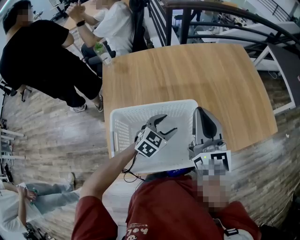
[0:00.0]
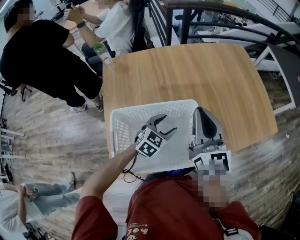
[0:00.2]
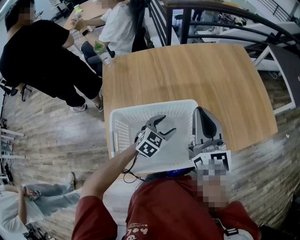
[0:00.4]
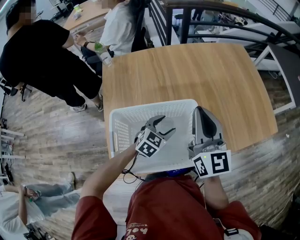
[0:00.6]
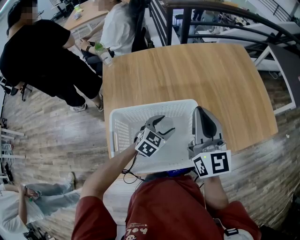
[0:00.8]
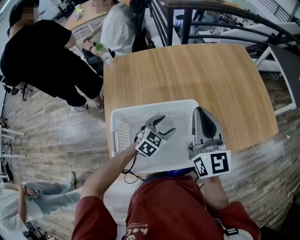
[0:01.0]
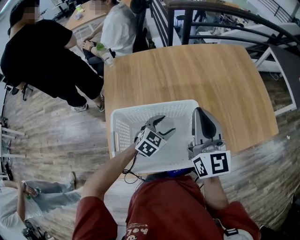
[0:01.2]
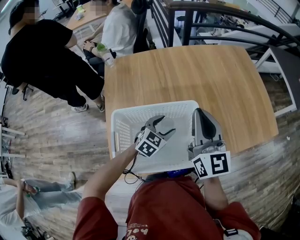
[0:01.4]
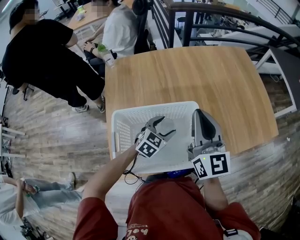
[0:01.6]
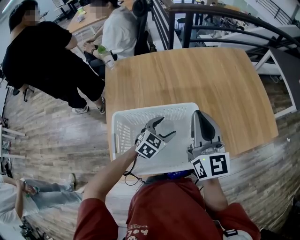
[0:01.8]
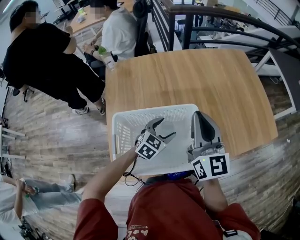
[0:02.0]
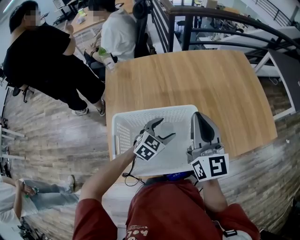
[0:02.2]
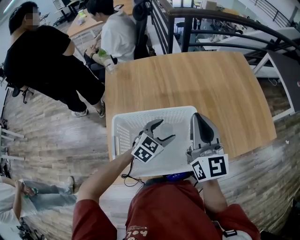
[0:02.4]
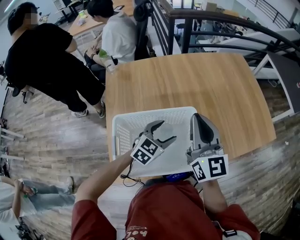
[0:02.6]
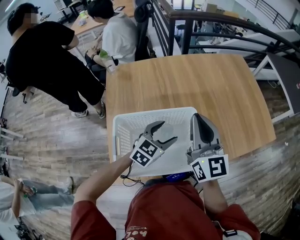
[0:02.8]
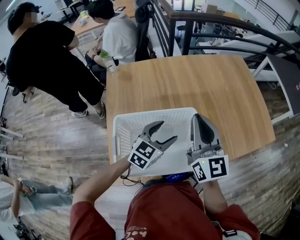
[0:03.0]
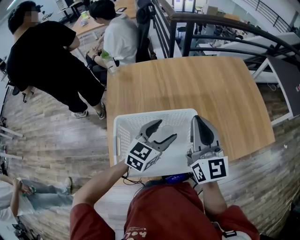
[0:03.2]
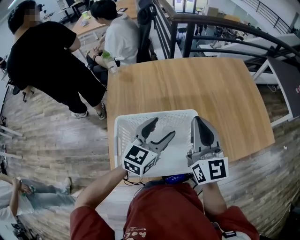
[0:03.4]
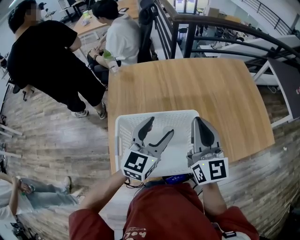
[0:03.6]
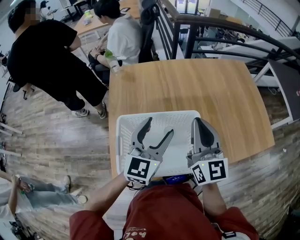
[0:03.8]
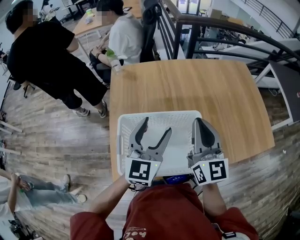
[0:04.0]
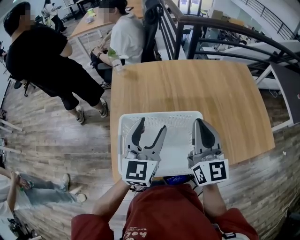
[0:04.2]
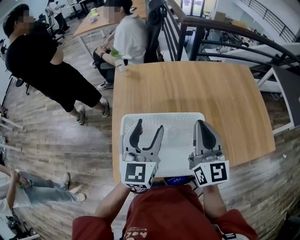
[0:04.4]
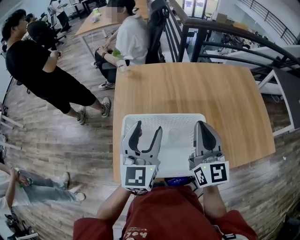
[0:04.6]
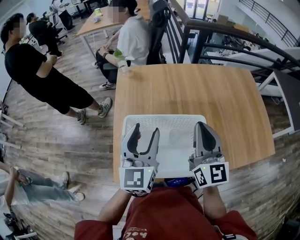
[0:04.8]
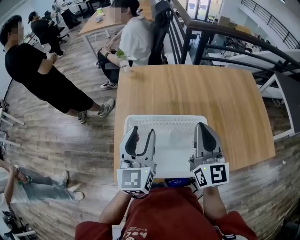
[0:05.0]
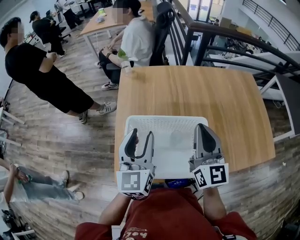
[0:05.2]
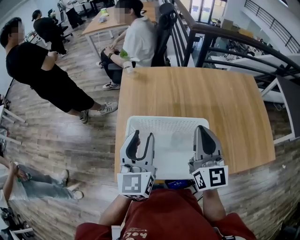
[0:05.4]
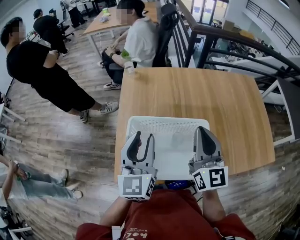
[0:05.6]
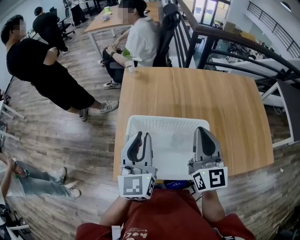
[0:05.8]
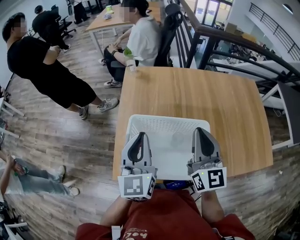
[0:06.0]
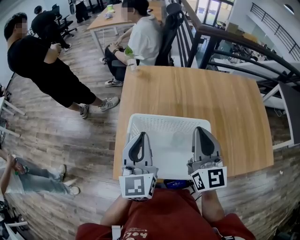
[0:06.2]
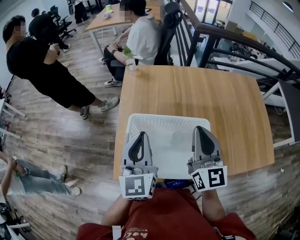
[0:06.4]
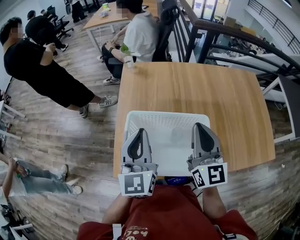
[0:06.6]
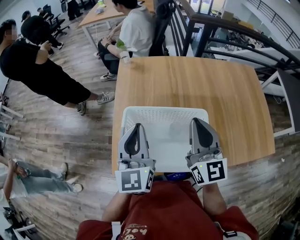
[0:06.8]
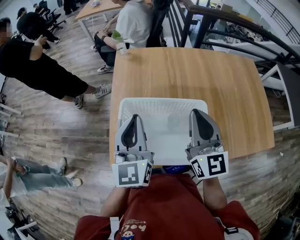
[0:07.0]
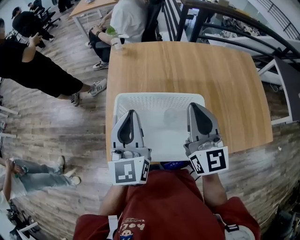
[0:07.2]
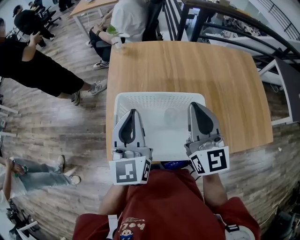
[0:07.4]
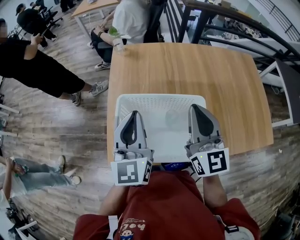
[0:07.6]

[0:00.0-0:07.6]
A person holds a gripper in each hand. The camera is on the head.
0:00.0 to 0:01.6: The grippers stay close to where they were, moving slightly.
0:01.6 to 0:03.0: The left gripper shifts roughly 10 cm upward.
0:03.0 to 0:04.6: The left gripper moves upward and to the left, some 20 cm, and turns by approximately 40 degrees.
0:04.6 to 0:06.0: The left gripper changes place by approximately 5 cm, and closes.
0:06.0 to 0:07.6: The grippers make only small movements.

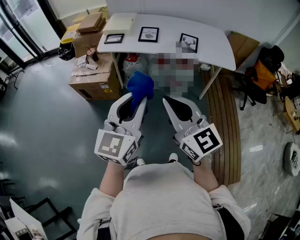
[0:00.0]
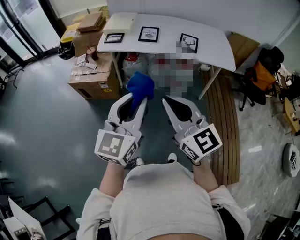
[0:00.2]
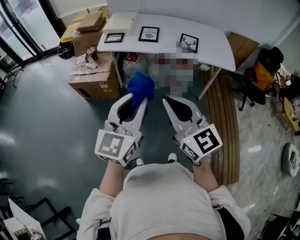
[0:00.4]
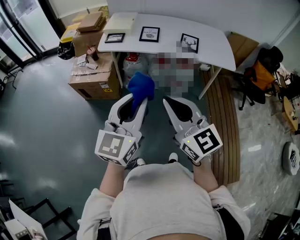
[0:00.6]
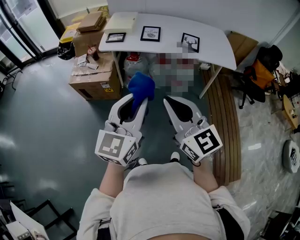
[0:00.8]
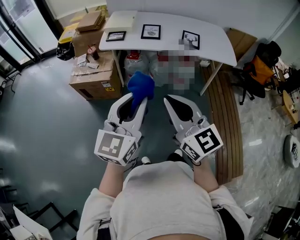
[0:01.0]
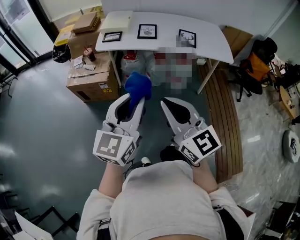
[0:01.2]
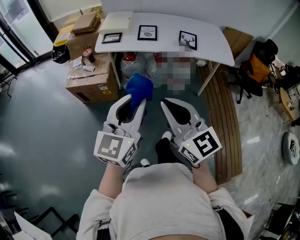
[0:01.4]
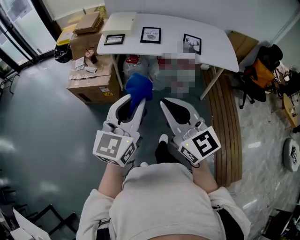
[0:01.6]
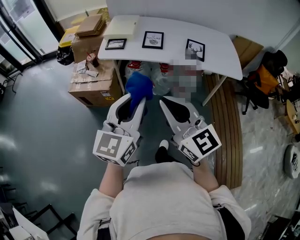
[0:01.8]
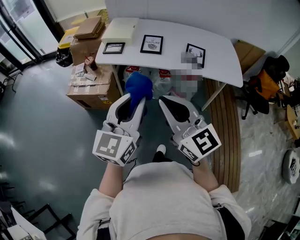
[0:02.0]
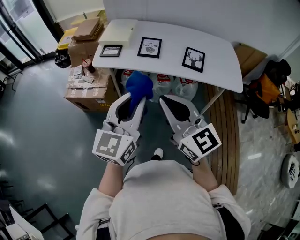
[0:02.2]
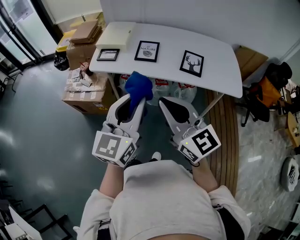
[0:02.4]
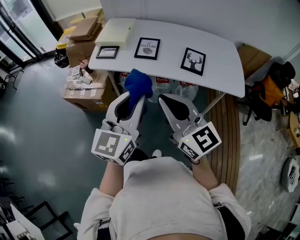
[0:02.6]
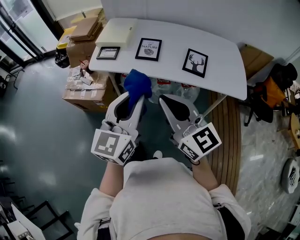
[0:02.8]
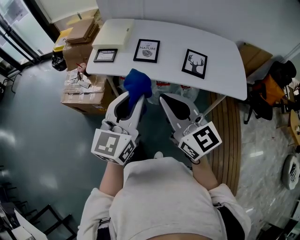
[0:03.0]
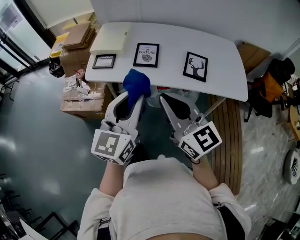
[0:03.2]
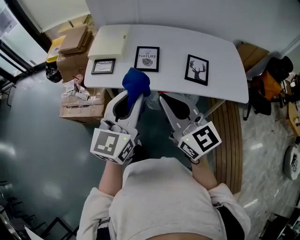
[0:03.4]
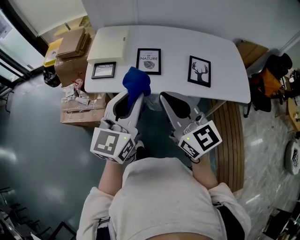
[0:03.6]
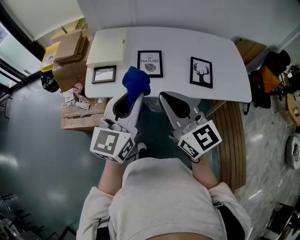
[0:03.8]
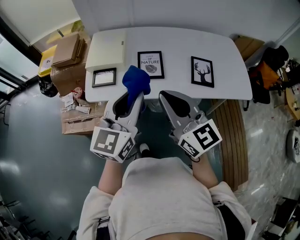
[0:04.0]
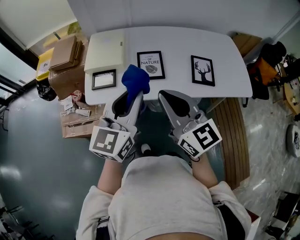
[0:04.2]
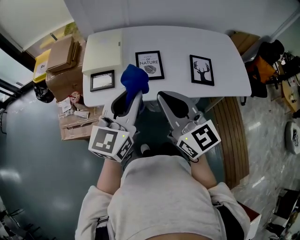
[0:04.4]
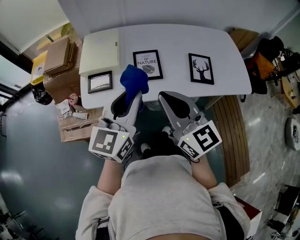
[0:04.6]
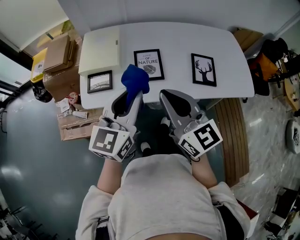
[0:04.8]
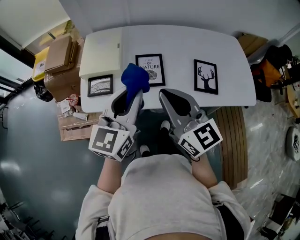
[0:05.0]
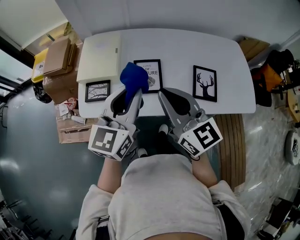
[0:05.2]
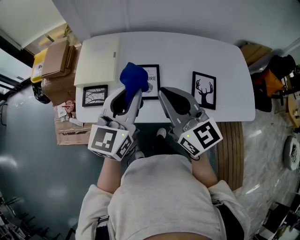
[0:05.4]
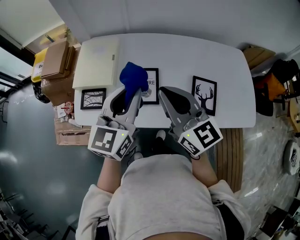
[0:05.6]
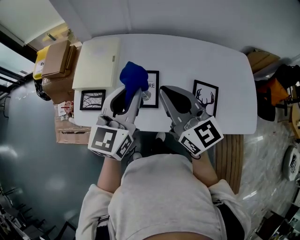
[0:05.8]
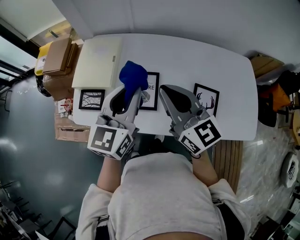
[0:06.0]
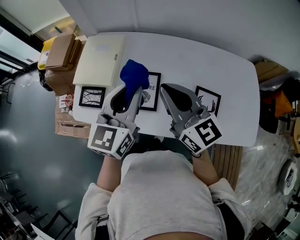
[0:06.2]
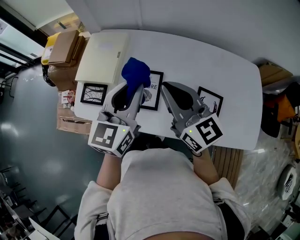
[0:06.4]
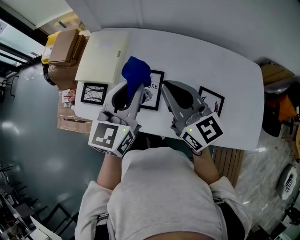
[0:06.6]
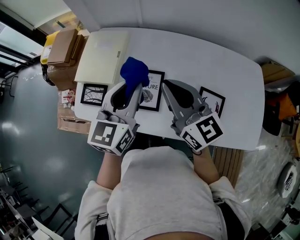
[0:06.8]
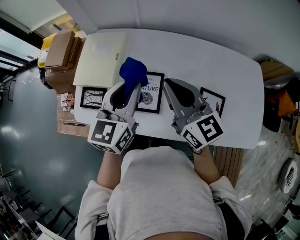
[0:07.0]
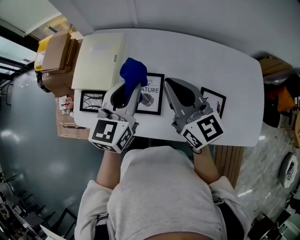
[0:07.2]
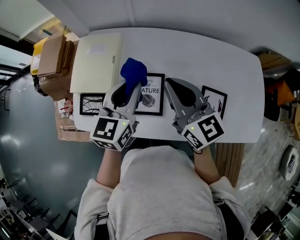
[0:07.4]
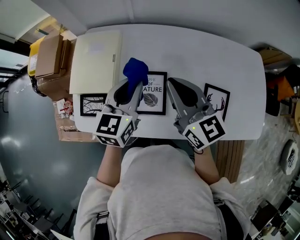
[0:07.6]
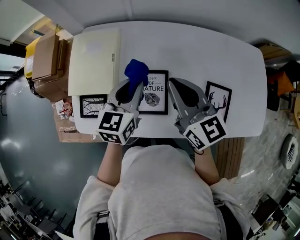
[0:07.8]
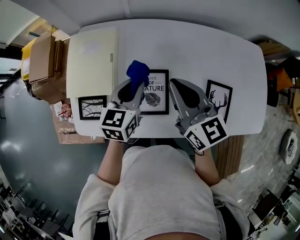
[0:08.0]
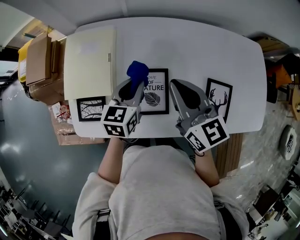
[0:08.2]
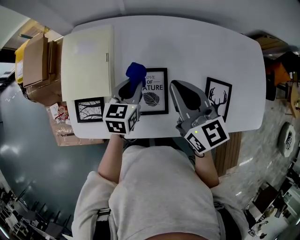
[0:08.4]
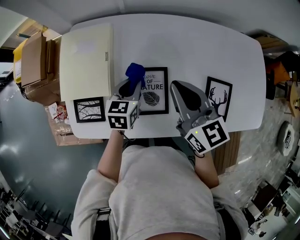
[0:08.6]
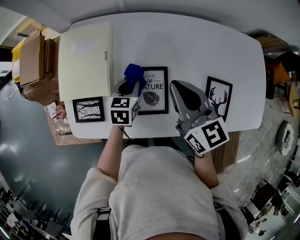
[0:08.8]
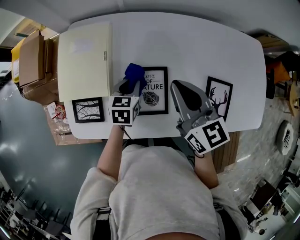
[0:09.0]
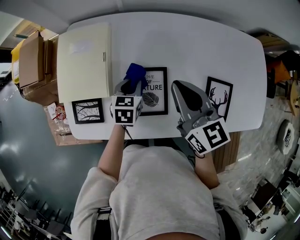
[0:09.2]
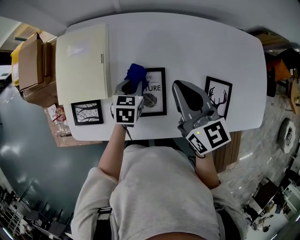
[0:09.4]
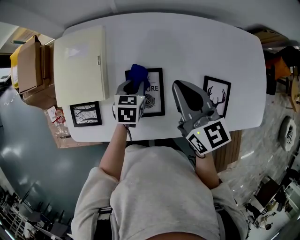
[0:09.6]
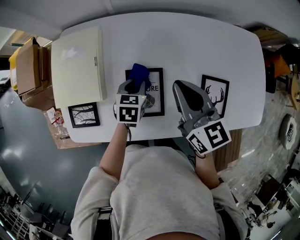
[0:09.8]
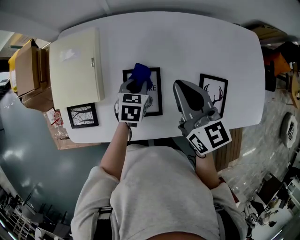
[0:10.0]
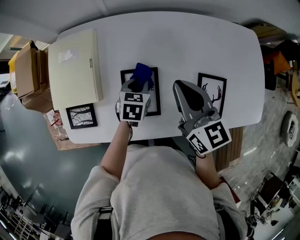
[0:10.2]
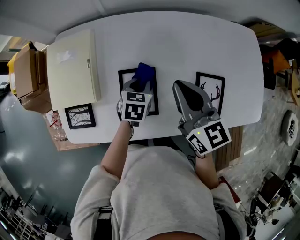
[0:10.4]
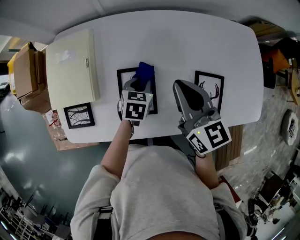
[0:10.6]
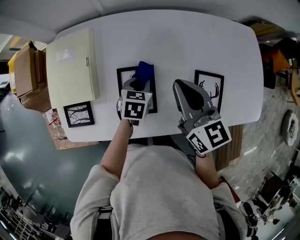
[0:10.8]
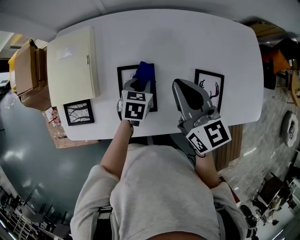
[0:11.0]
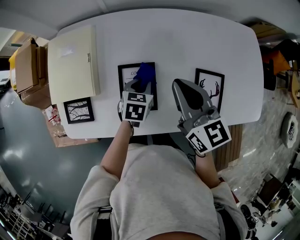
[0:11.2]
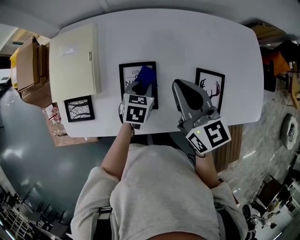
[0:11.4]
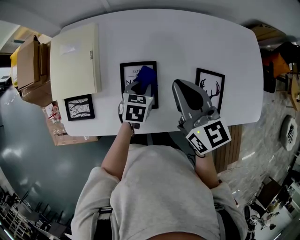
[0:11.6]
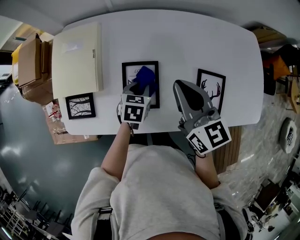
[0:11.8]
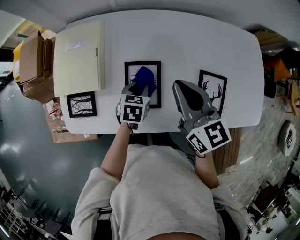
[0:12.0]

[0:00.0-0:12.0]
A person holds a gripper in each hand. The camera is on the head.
0:00.0 to 0:01.6: The right gripper heads to the left, covering roughly 5 cm. The left gripper moves to the left and forward, some 10 cm.
0:01.6 to 0:03.0: Both grippers travel together forward and to the right, about 25 cm.
0:03.0 to 0:04.4: The grippers both shift forward and to the left by roughly 20 cm.
0:04.4 to 0:06.0: The grippers both shift forward and to the right by approximately 25 cm.
0:06.0 to 0:07.6: The two grippers go some 15 cm forward and downward.
0:07.6 to 0:09.0: The right gripper goes some 5 cm downward; the left gripper moves downward, about 20 cm, and swivels about 30 degrees.
0:09.0 to 0:10.4: Both grippers travel together to the right, approximately 10 cm.
0:10.4 to 0:12.0: The left gripper ends up approximately 5 cm from where it was.

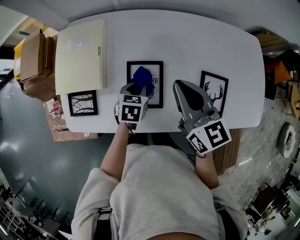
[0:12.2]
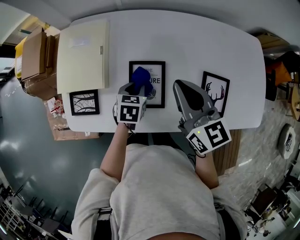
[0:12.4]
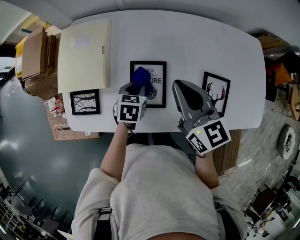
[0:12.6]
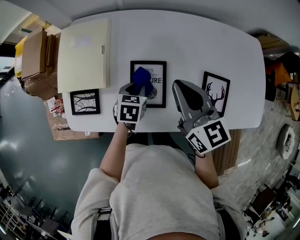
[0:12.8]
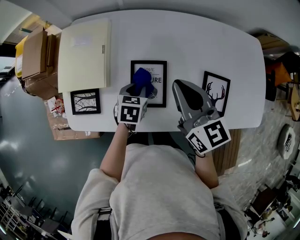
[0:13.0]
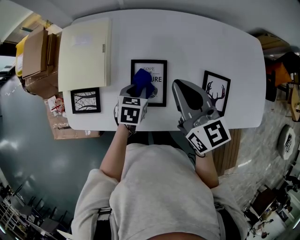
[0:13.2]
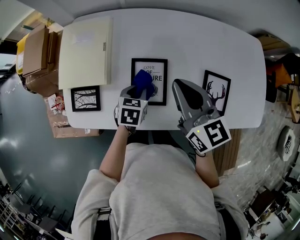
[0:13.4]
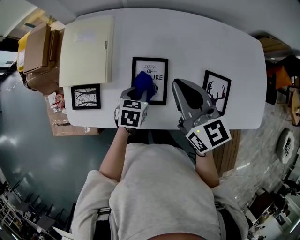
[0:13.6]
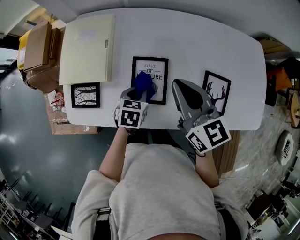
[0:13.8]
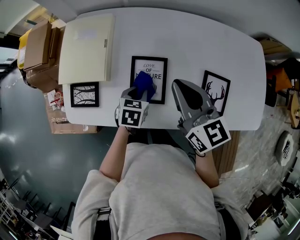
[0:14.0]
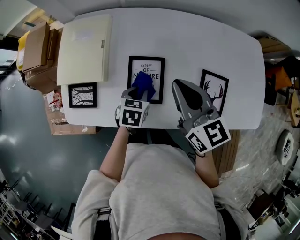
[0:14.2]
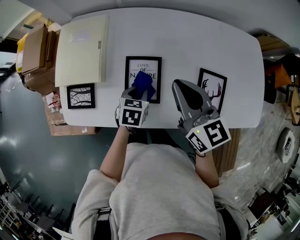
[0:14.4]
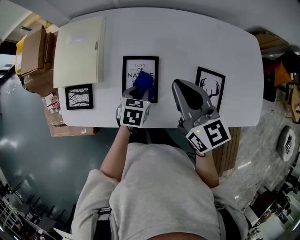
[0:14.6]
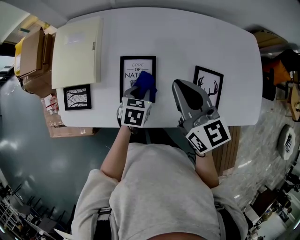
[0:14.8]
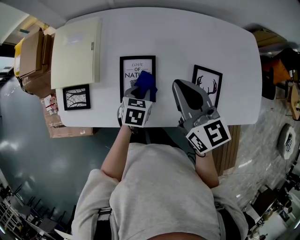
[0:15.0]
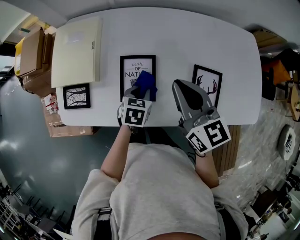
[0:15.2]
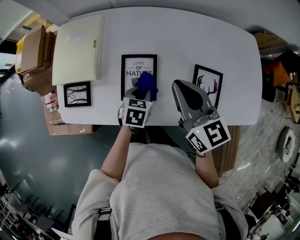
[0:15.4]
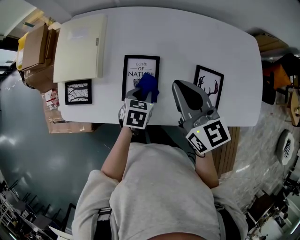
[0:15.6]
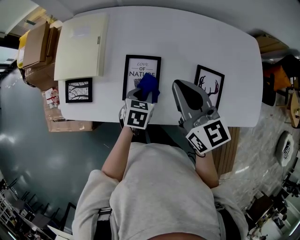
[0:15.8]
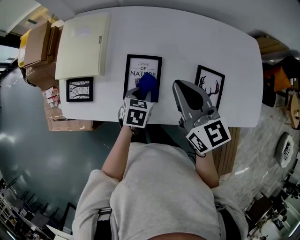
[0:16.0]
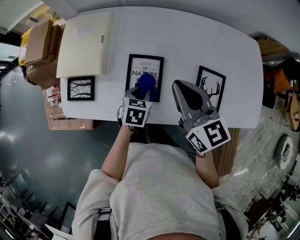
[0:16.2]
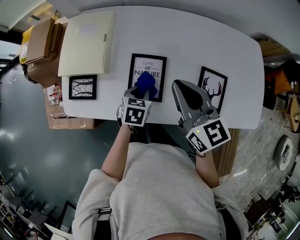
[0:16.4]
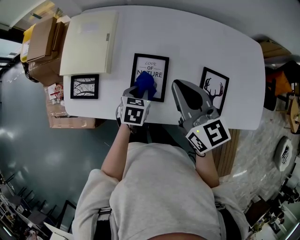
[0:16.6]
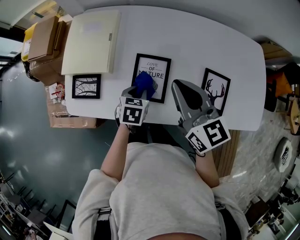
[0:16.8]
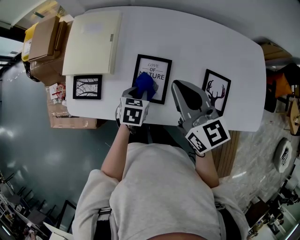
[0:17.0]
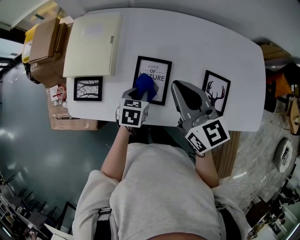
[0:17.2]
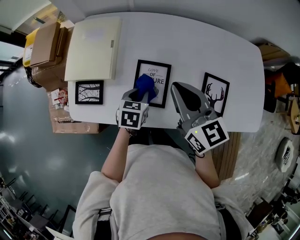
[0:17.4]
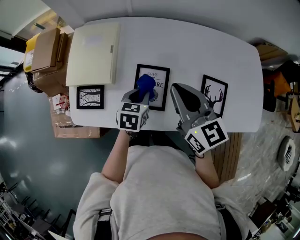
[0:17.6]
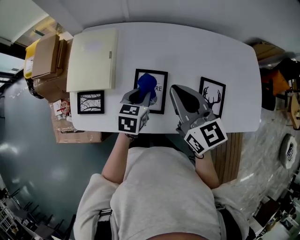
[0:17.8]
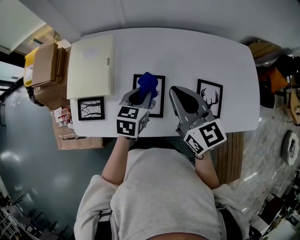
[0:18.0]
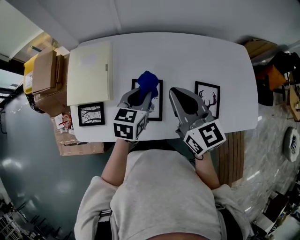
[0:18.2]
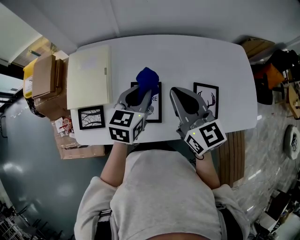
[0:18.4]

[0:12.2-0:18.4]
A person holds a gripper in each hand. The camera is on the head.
0:12.2 to 0:13.8: There are only small adjustments of the grippers.
0:13.8 to 0:15.4: The grippers both shift to the right by roughly 5 cm.
0:15.4 to 0:16.8: The two grippers go about 5 cm to the left.
0:16.8 to 0:18.4: The right gripper shifts by approximately 5 cm. Meanwhile the left gripper goes about 20 cm upward, and swivels about 30 degrees.
